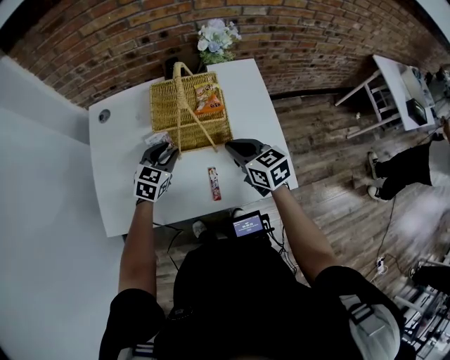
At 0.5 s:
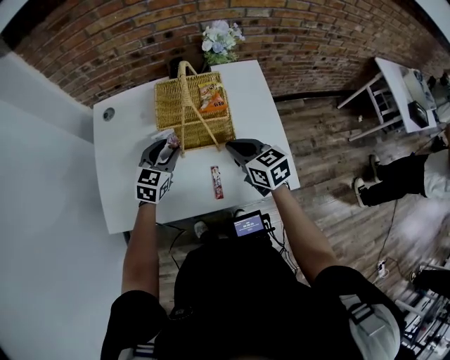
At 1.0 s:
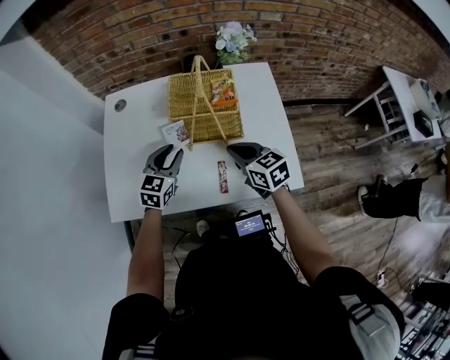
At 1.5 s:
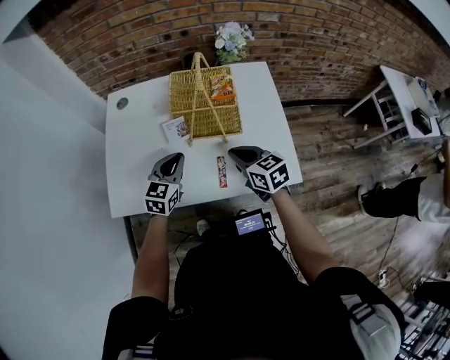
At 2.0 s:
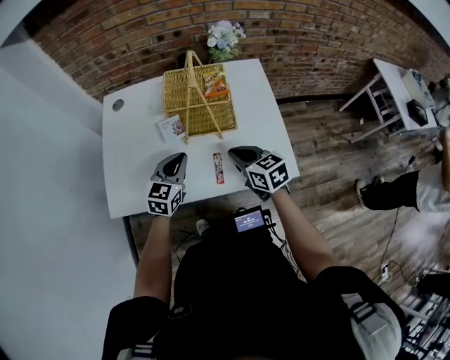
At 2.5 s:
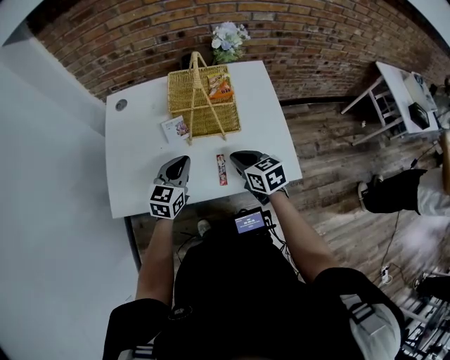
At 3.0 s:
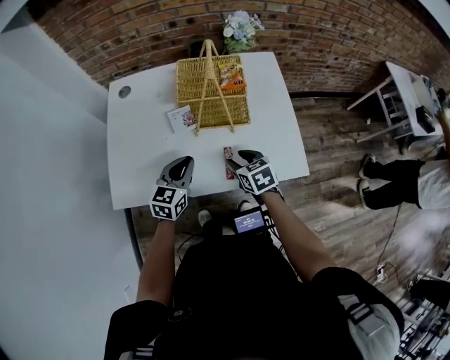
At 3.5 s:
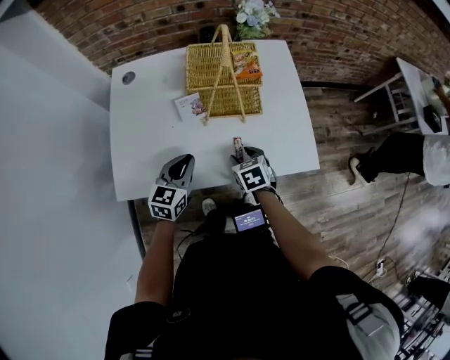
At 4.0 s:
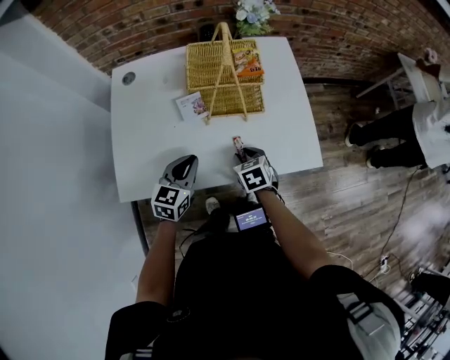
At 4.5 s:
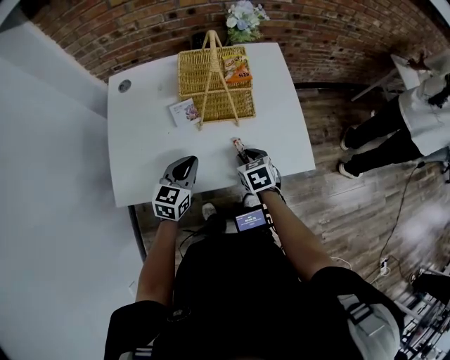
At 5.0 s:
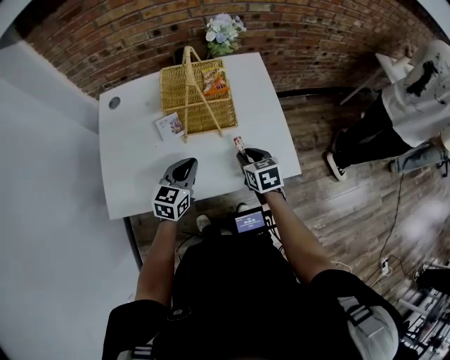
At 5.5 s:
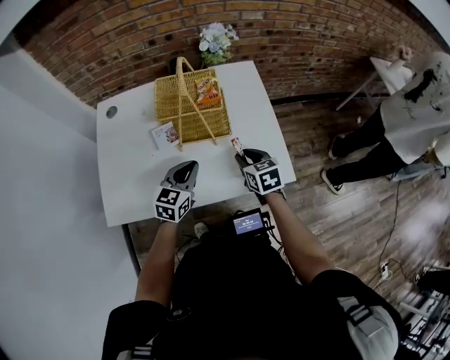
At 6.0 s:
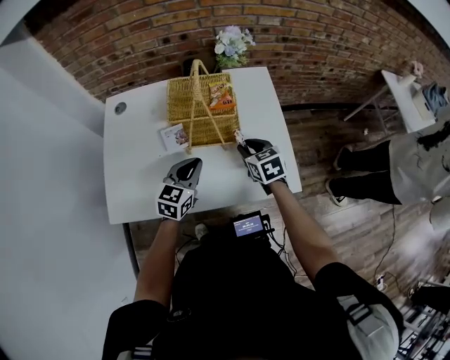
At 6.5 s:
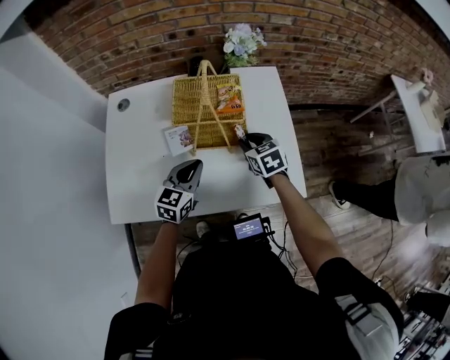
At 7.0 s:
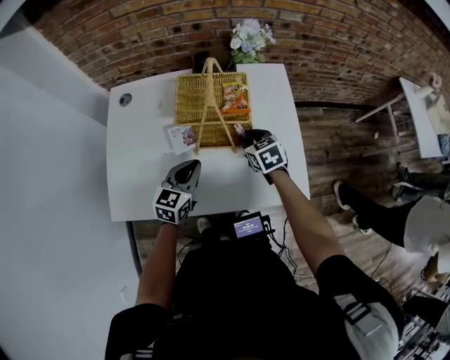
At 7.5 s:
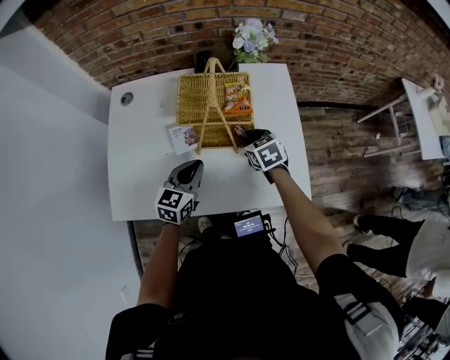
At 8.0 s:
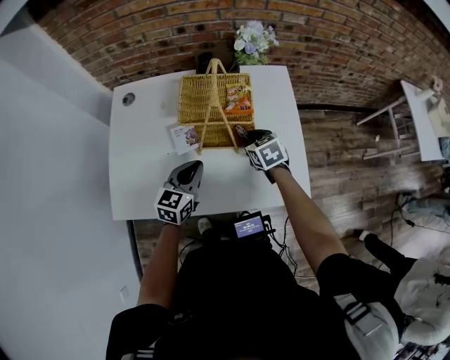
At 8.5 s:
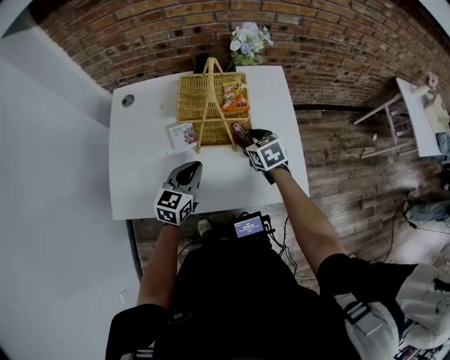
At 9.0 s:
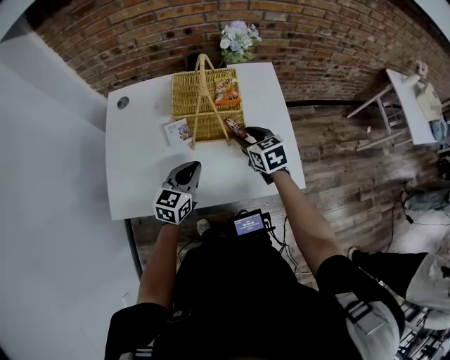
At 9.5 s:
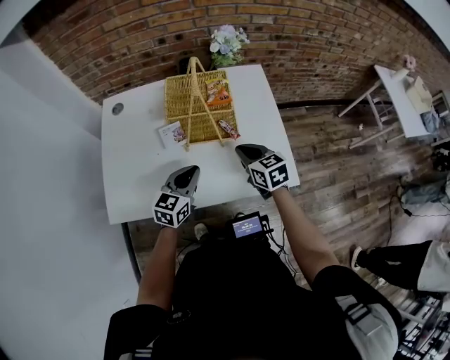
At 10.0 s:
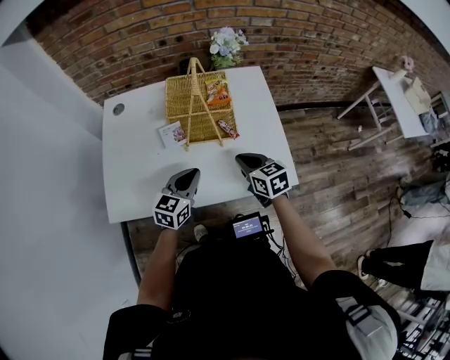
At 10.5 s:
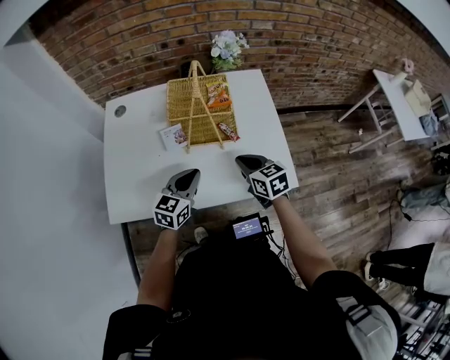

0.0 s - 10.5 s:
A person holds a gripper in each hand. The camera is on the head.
0.0 s - 2.0 s: Both grippers travel together backward, about 10 cm. The left gripper closes.
2.0 s - 4.0 s: The left gripper shifts by roughly 10 cm, while the right gripper goes approximately 15 cm downward, turns by approximately 30 degrees, and opens up.
4.0 s - 6.5 s: The left gripper goes approximately 10 cm forward and to the right; the right gripper is displaced forward, upward and to the right by some 15 cm.
6.5 s - 8.5 s: The right gripper opens.
8.5 s - 10.5 s: The right gripper shifts some 10 cm backward, and closes up.

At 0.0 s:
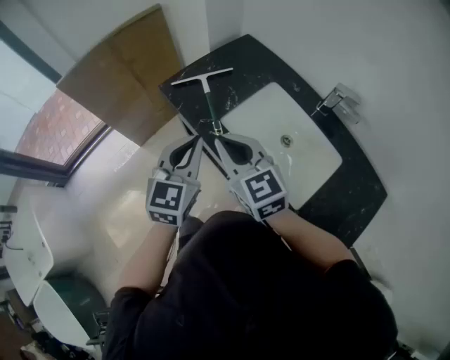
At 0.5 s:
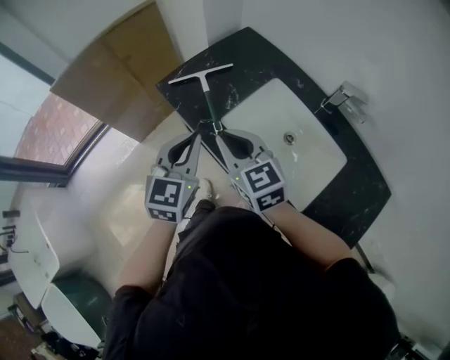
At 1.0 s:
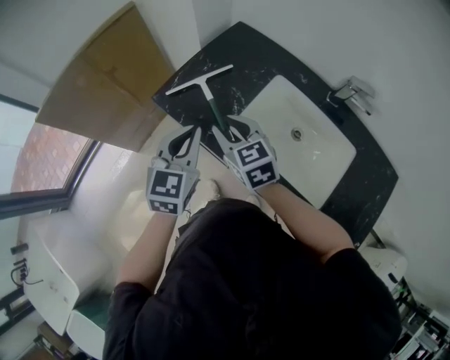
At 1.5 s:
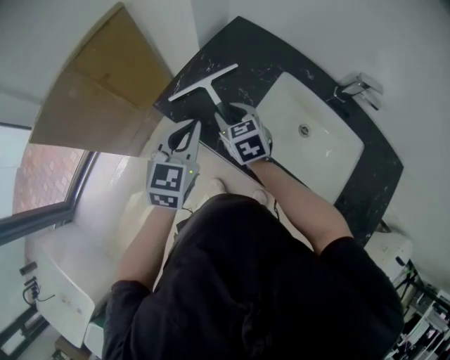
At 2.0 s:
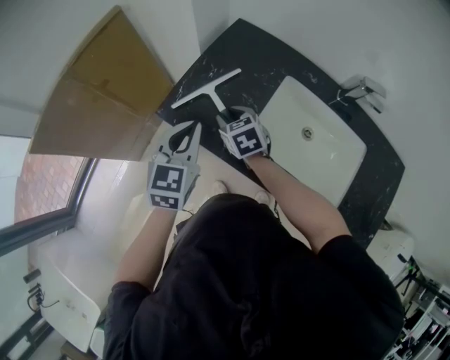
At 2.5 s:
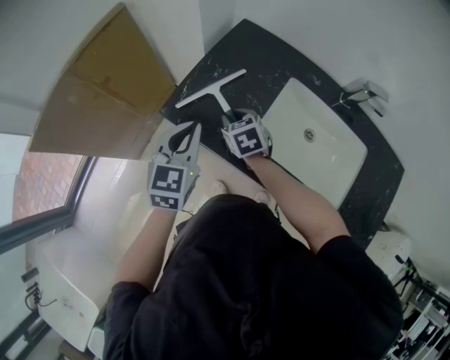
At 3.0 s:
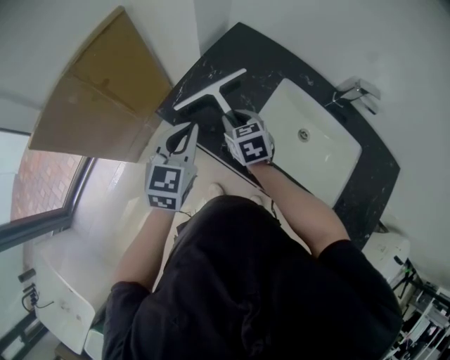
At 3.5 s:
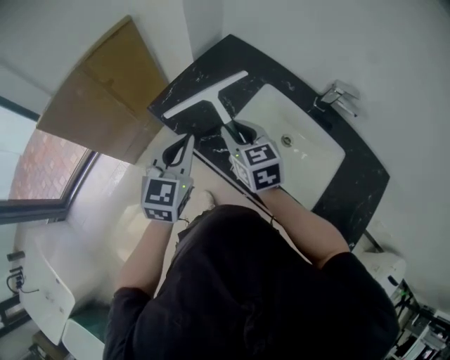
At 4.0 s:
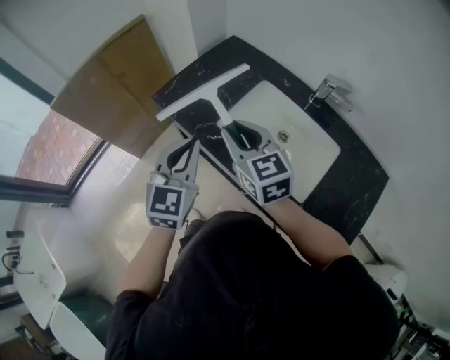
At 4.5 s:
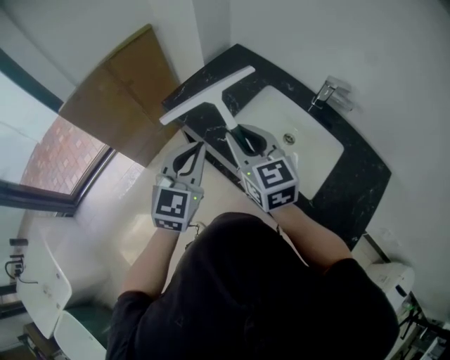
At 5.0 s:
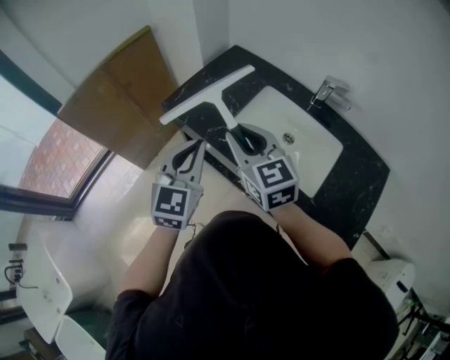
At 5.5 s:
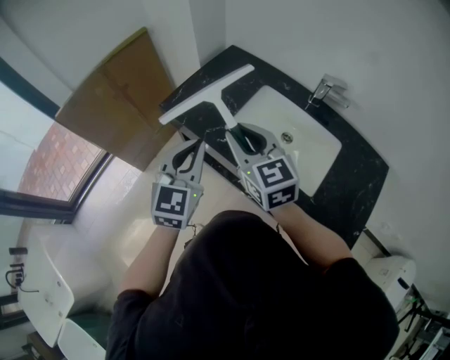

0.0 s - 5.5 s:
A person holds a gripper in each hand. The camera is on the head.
0.0 s - 2.0 s: The right gripper is displaced forward and downward by roughly 30 cm, tips its fingers downward by about 30 degrees, and opens up; the left gripper shifts approximately 20 cm forward and to the left.
2.0 s - 3.5 s: The right gripper goes about 20 cm upward, backward and to the right. Meanwhile the left gripper is displaced backward and to the right by roughly 10 cm.
3.5 s - 5.5 s: The right gripper travels backward and upward by roughly 15 cm; the left gripper goes some 10 cm backward.

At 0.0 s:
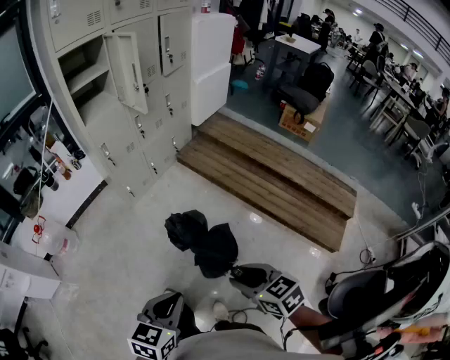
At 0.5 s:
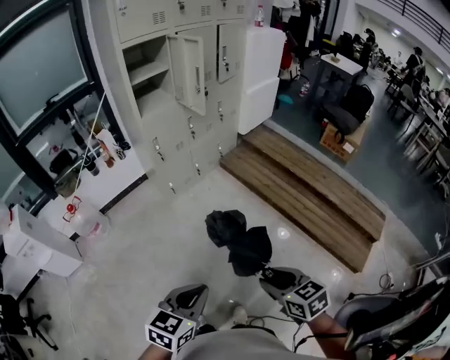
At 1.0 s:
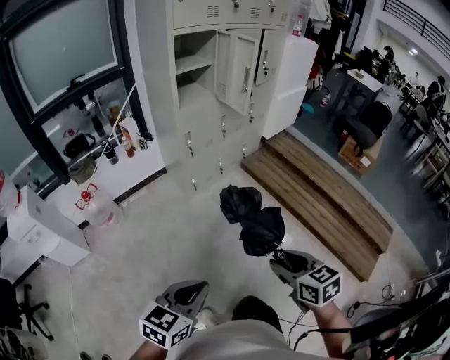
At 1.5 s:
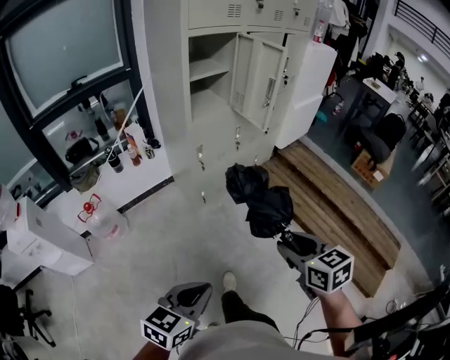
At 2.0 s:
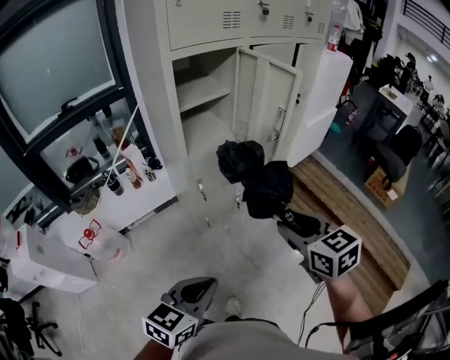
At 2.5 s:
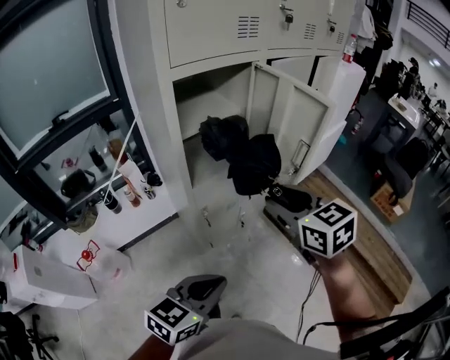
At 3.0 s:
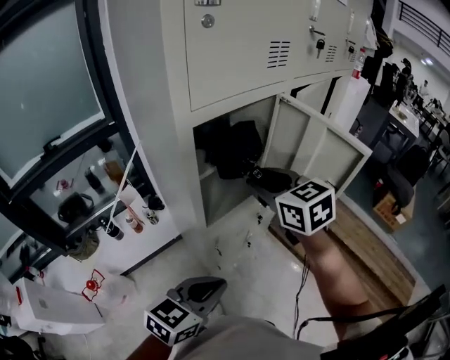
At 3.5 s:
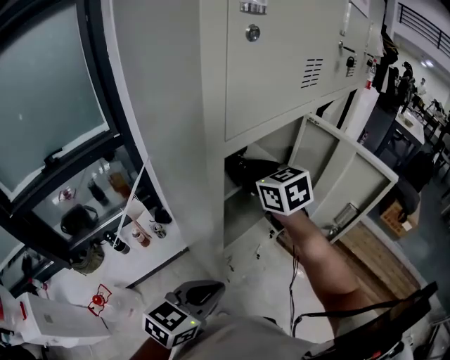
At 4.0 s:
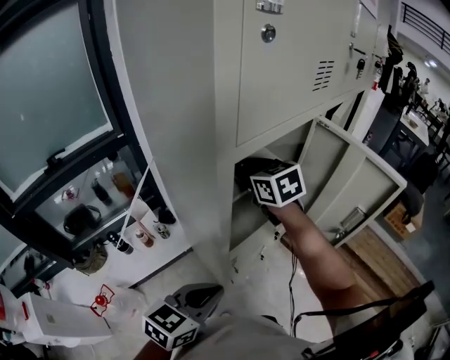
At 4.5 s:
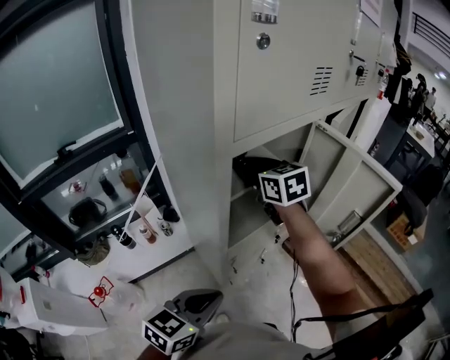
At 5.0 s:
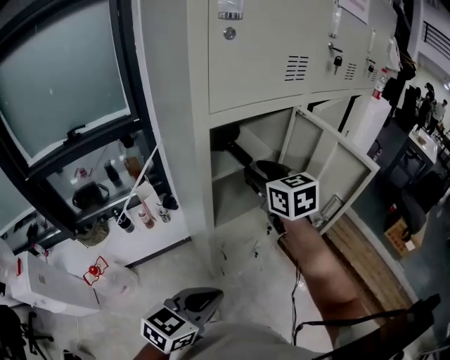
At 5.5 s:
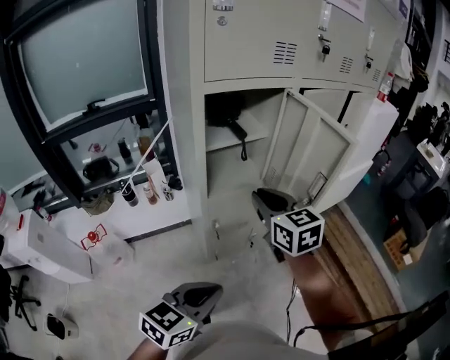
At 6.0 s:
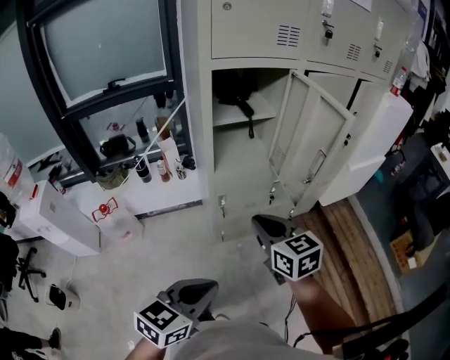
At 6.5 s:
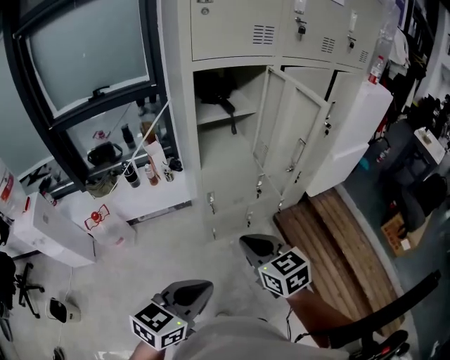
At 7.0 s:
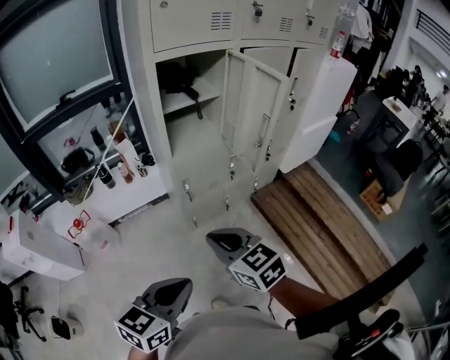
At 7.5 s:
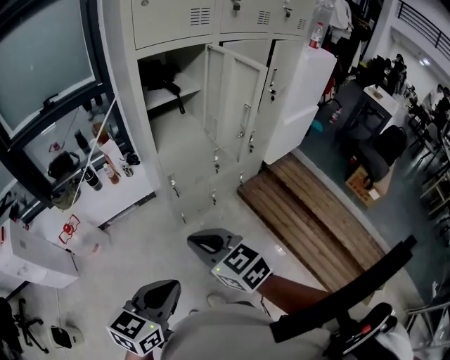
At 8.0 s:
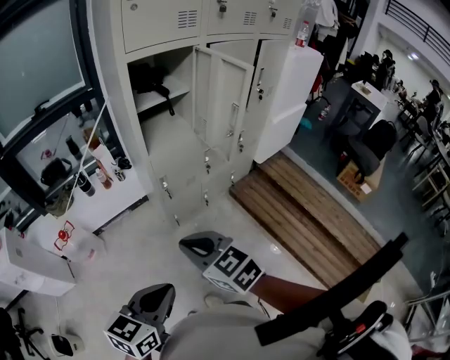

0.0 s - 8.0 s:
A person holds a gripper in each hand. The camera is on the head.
0.0 s - 2.0 s: Both grippers travel together forward and to the left, approximately 50 cm.
2.0 s - 4.0 s: The left gripper shifts approximately 40 cm forward and to the left; the right gripper is displaced forward and to the left by about 60 cm.
4.0 s - 6.0 s: Both grippers travel together backward and to the right, some 35 cm. The left gripper swivels approximately 20 degrees; the right gripper closes its fingers.
6.0 s - 8.0 s: The left gripper is displaced backward by roughly 10 cm. The right gripper goes approximately 20 cm backward.

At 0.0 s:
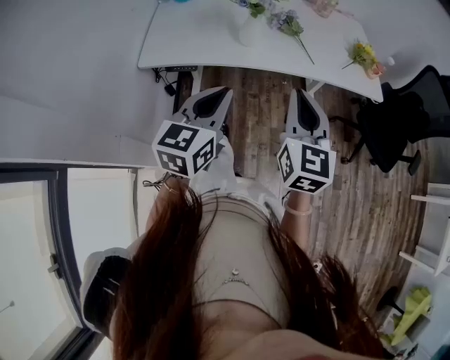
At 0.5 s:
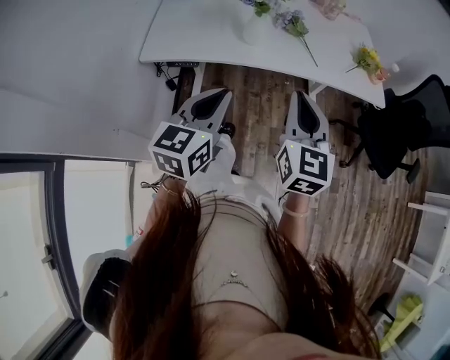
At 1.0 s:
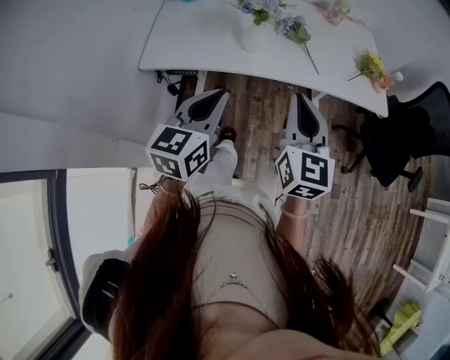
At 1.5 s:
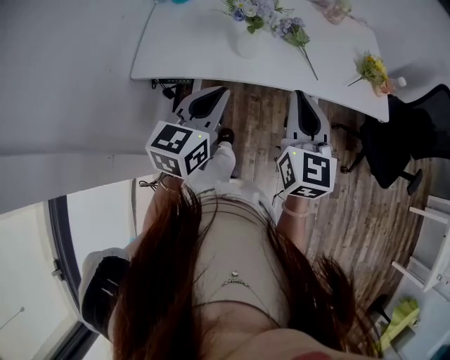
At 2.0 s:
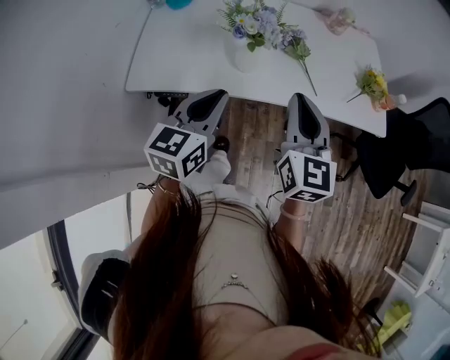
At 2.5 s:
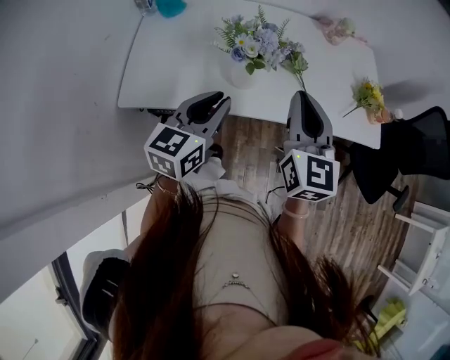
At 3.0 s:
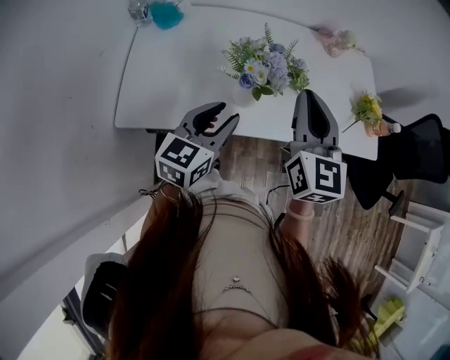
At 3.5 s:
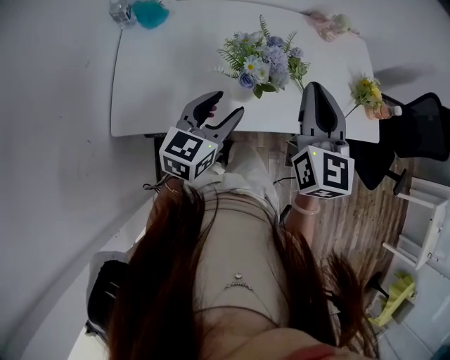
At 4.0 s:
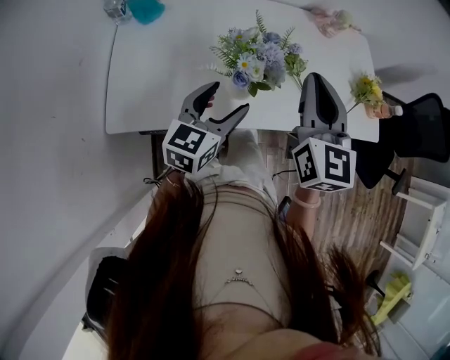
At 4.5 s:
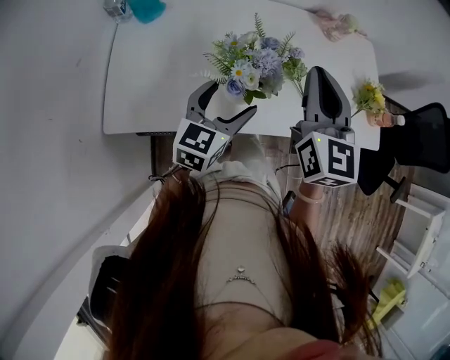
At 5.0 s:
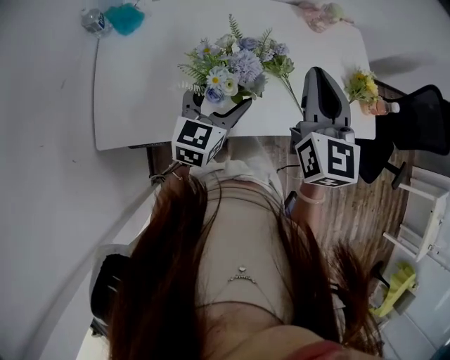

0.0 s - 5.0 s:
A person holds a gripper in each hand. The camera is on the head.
0.0 s - 2.5 s: Both grippers travel together forward, some 25 cm.
2.5 s - 5.0 s: The left gripper shifts about 15 cm forward and downward, and opens up, while the right gripper shifts about 15 cm forward.
